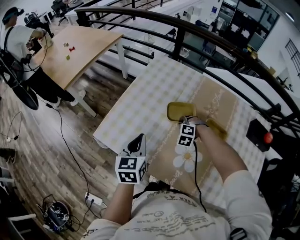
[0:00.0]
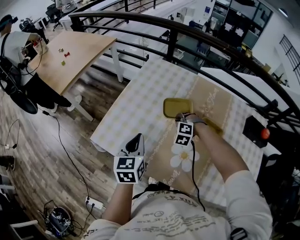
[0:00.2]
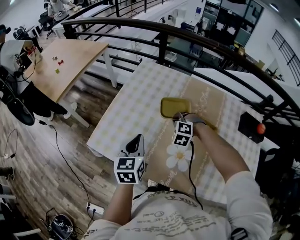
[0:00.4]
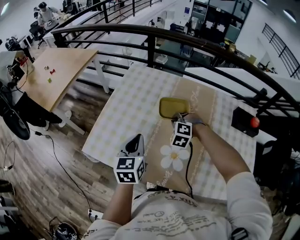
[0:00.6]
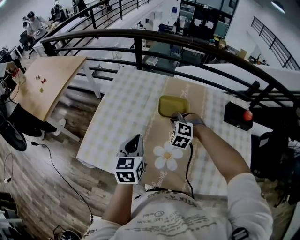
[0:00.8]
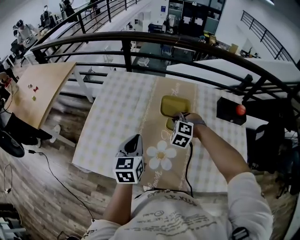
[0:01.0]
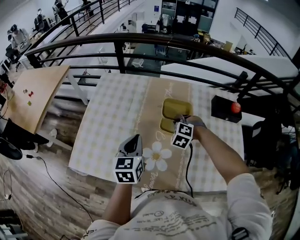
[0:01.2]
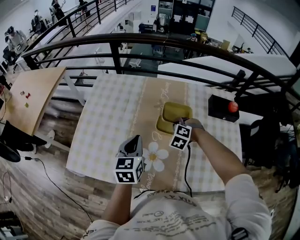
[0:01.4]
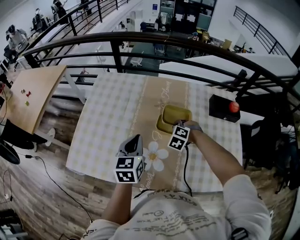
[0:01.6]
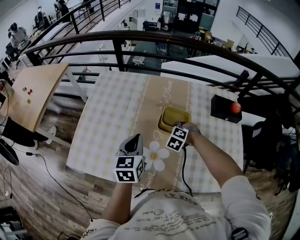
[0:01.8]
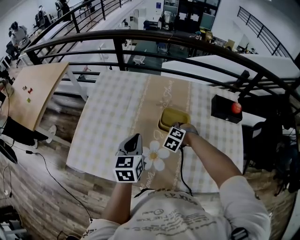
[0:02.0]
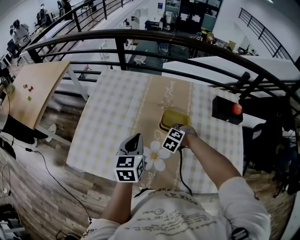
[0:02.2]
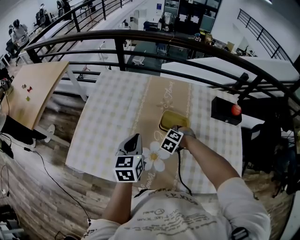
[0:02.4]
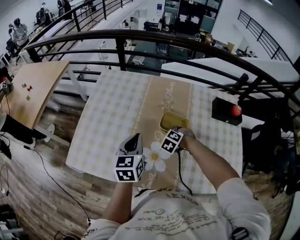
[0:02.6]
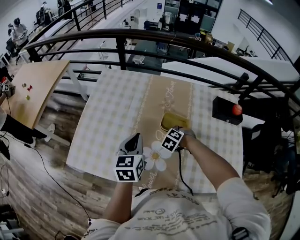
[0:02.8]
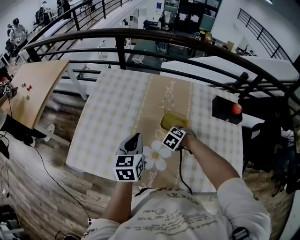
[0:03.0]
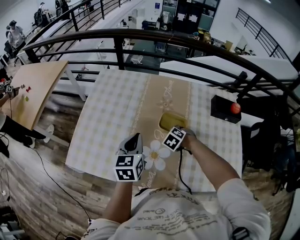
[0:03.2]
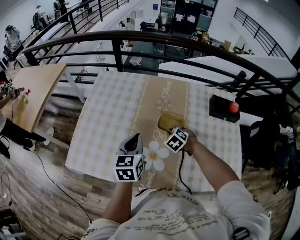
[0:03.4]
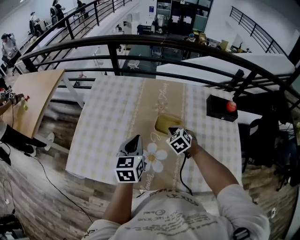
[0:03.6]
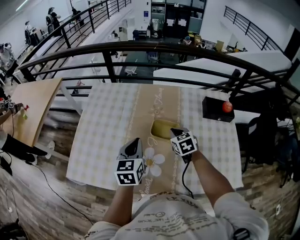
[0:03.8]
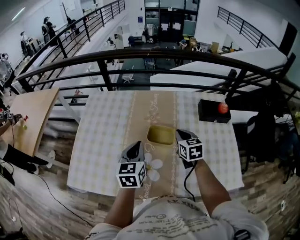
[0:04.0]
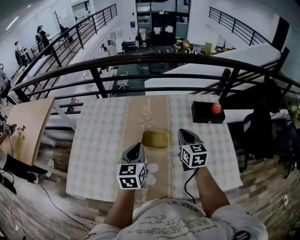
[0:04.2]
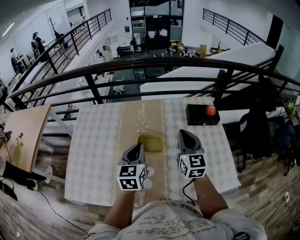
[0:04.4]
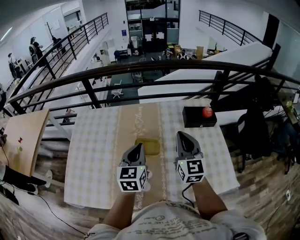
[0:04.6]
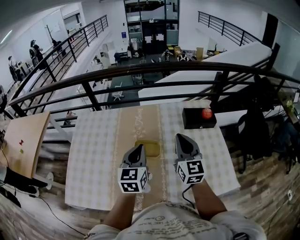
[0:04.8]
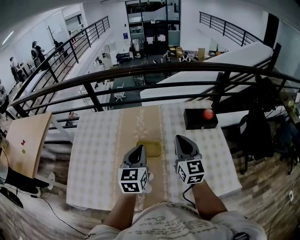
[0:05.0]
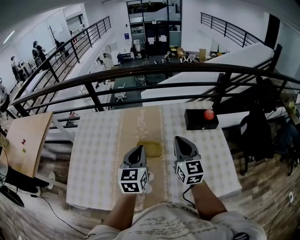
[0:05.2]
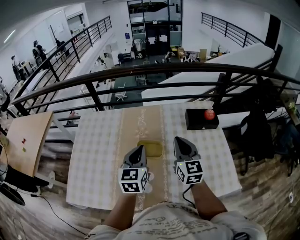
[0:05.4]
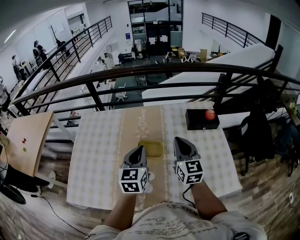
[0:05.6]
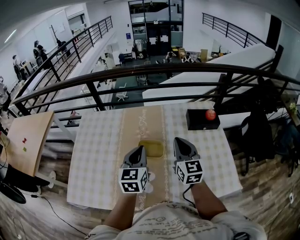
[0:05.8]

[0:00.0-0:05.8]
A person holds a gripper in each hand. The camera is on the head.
0:00.0 to 0:01.4: The right gripper is displaced to the right and upward by about 25 cm, and changes its angle by some 30 degrees, while the left gripper moves to the right, some 20 cm, and changes its angle by about 20 degrees.
0:01.4 to 0:02.8: The right gripper travels downward by approximately 10 cm.
0:02.8 to 0:04.4: The right gripper moves upward and to the right, approximately 35 cm, and points its fingers about 60 degrees further upward, while the left gripper heads to the right and upward, covering approximately 15 cm.
0:04.4 to 0:05.8: The grippers make only small movements.

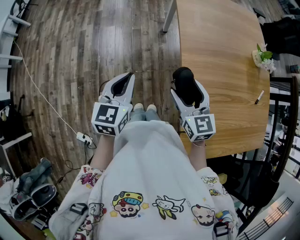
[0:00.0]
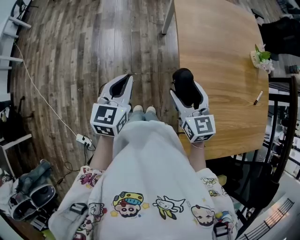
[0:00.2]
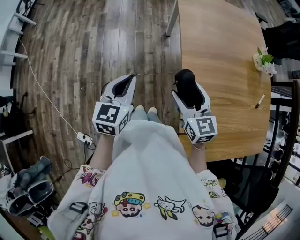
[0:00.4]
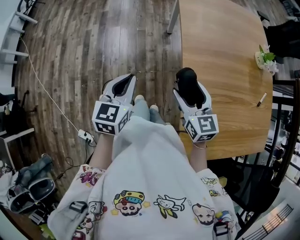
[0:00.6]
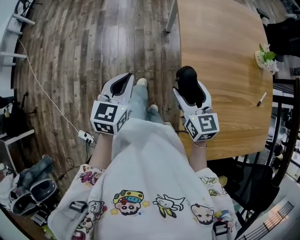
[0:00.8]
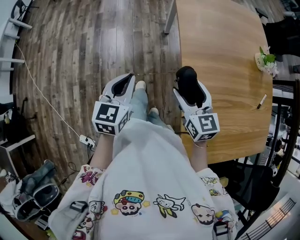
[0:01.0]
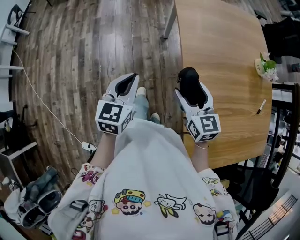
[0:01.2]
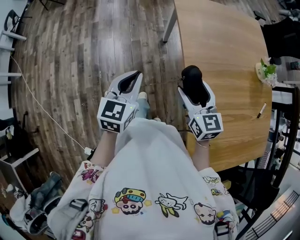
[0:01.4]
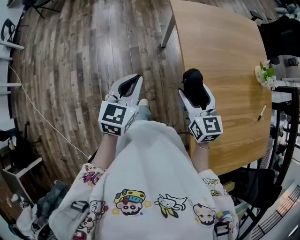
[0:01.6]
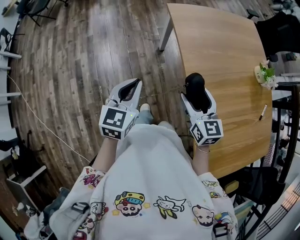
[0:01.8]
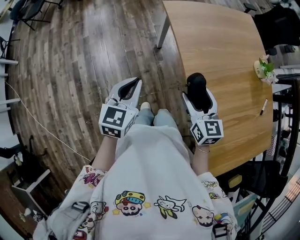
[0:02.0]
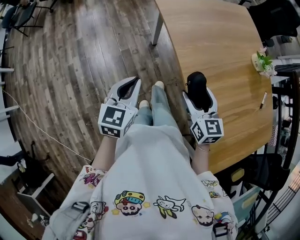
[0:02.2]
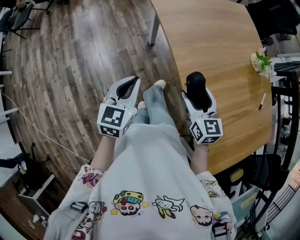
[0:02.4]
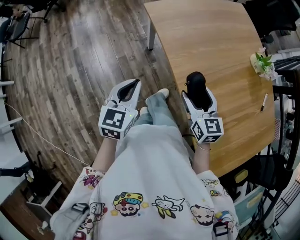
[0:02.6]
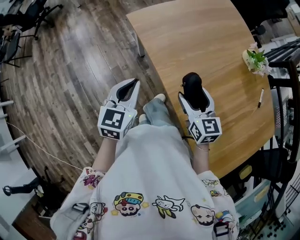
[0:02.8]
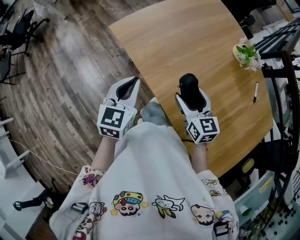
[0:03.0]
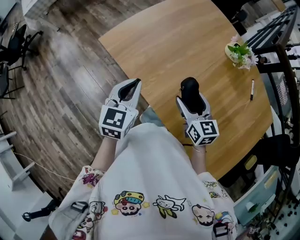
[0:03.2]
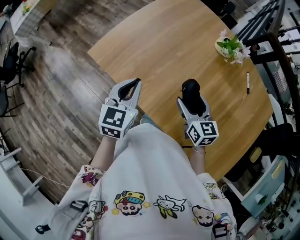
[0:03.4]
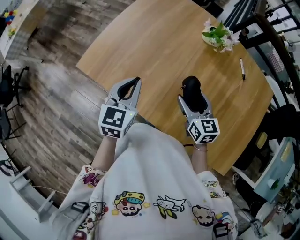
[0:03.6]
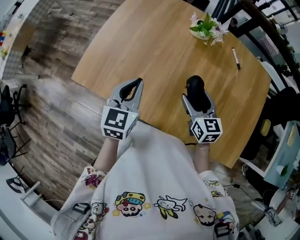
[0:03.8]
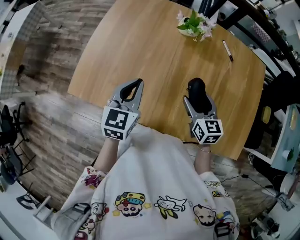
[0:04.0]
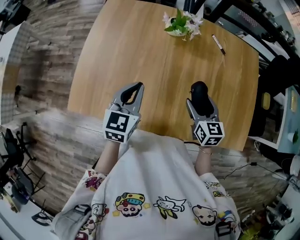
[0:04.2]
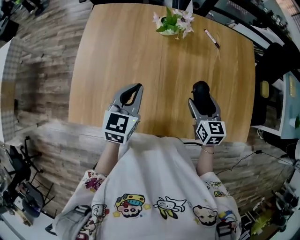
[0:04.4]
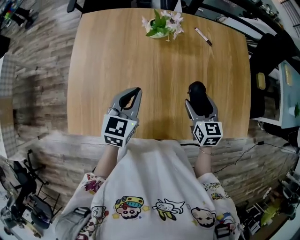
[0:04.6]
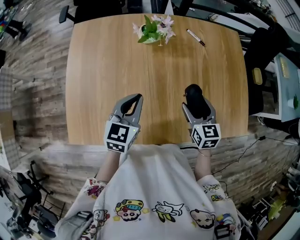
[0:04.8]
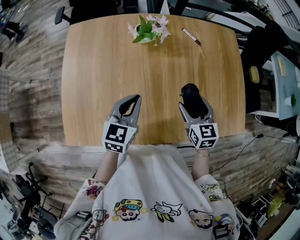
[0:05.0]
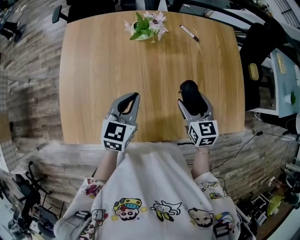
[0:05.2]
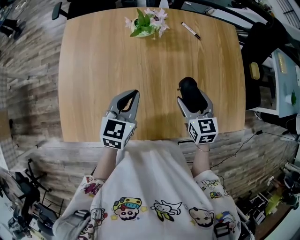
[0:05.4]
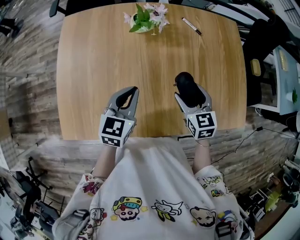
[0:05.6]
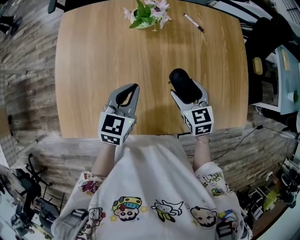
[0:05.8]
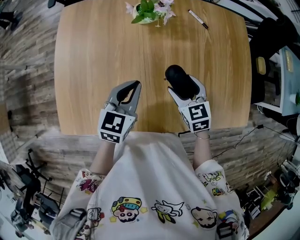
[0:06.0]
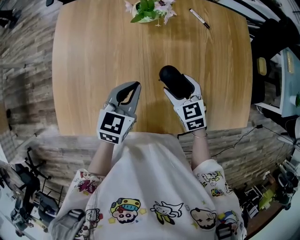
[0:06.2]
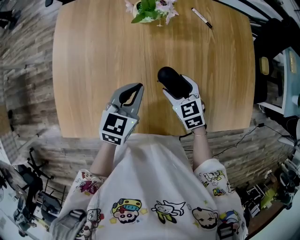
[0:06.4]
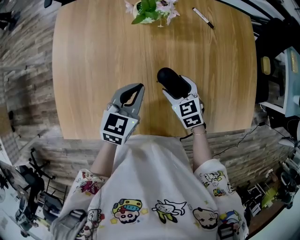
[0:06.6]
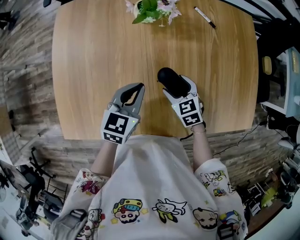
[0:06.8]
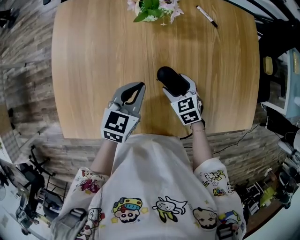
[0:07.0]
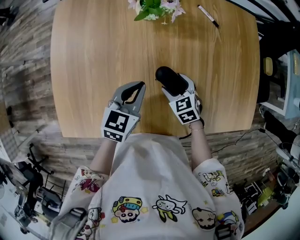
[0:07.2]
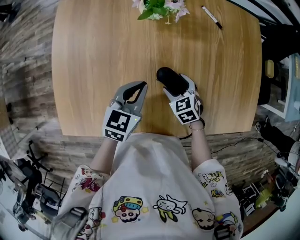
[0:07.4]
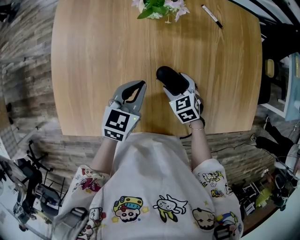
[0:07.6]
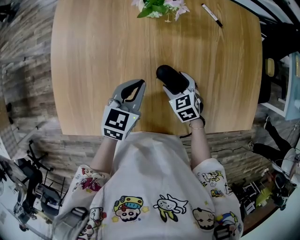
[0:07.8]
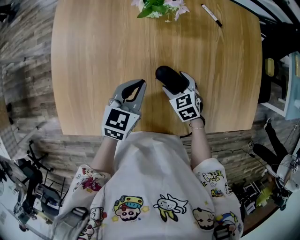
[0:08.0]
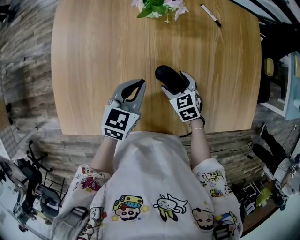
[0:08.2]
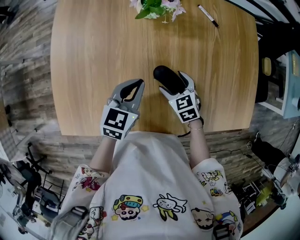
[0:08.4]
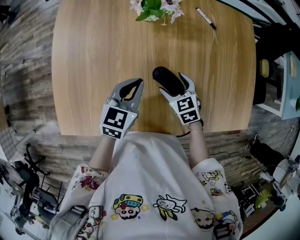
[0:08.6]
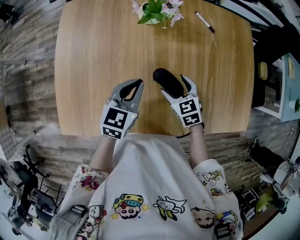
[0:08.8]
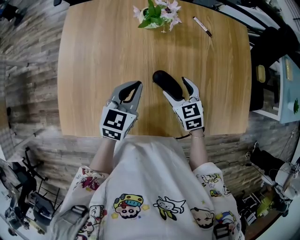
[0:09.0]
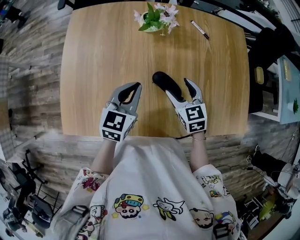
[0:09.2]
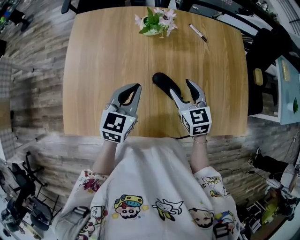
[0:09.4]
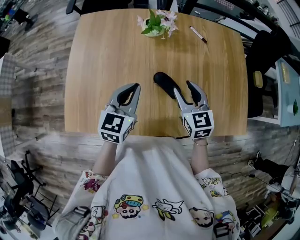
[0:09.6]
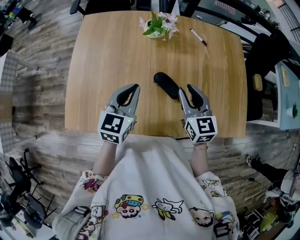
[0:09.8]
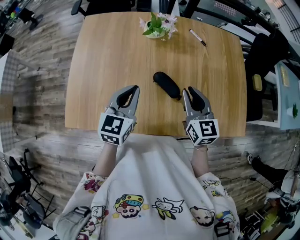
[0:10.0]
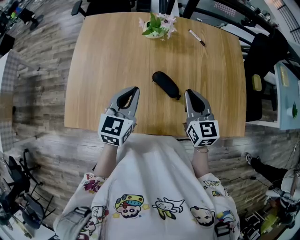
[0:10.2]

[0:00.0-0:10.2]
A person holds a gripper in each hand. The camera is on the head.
0:00.0 to 0:01.4: Both grippers travel together forward, about 15 cm.
0:01.4 to 0:03.0: The right gripper ends up roughly 20 cm from where it was, and rotates about 30 degrees, while the left gripper ends up some 30 cm from where it was, and rotates about 30 degrees.
0:03.0 to 0:04.4: The left gripper changes place by roughly 25 cm, and swivels some 50 degrees, while the right gripper changes place by some 20 cm, and rotates some 60 degrees.
0:04.4 to 0:05.8: The left gripper moves approximately 5 cm.
0:05.8 to 0:07.2: The left gripper moves downward, roughly 5 cm, while the right gripper goes about 15 cm downward and to the left, and turns by approximately 20 degrees.
0:07.2 to 0:08.8: There are only small adjustments of the grippers.
0:08.8 to 0:10.2: The left gripper goes some 10 cm backward and upward. Meanwhile the right gripper heads upward, covering roughly 15 cm, swivels approximately 30 degrees, and closes its fingers.

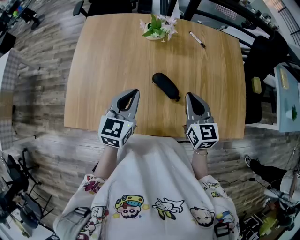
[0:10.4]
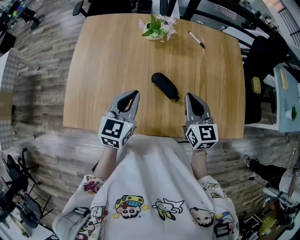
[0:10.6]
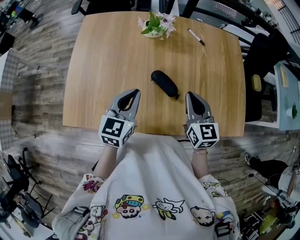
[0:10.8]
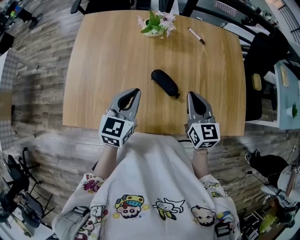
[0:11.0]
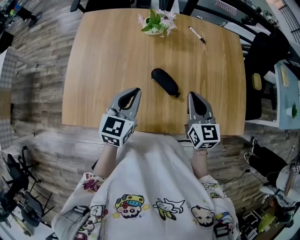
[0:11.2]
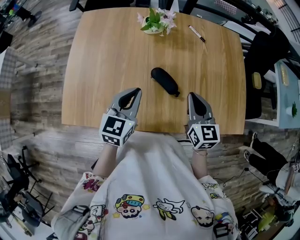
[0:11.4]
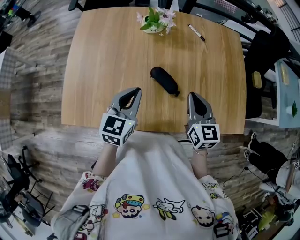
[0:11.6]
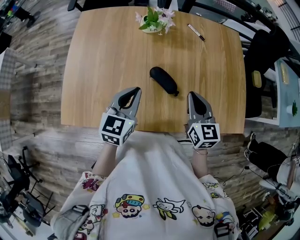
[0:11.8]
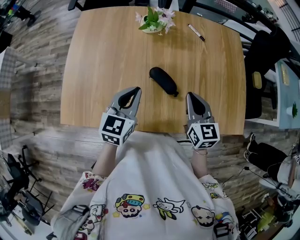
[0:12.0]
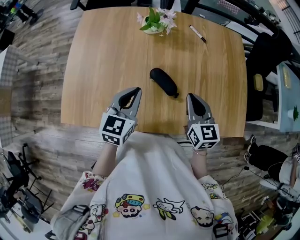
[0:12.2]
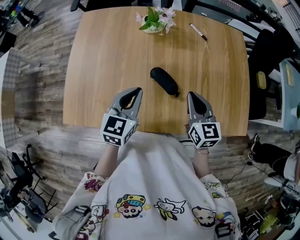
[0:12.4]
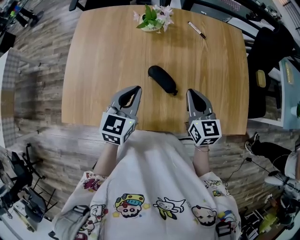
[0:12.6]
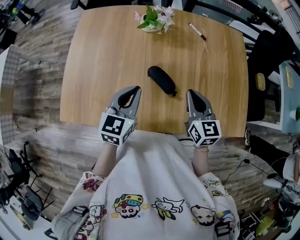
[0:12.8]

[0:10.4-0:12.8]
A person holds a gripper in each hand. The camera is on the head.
0:10.4 to 0:12.8: There are only small adjustments of the grippers.

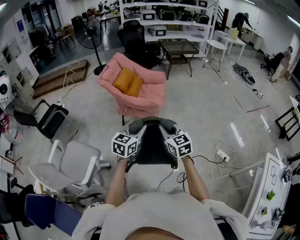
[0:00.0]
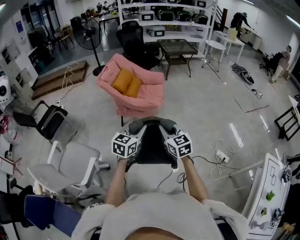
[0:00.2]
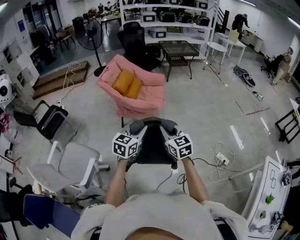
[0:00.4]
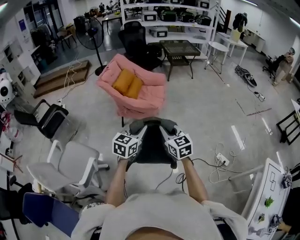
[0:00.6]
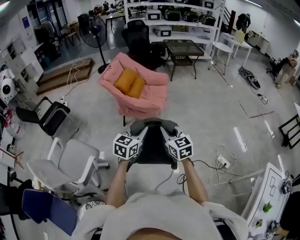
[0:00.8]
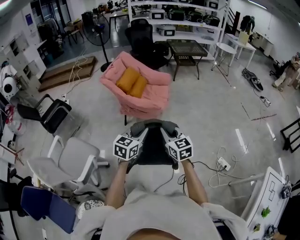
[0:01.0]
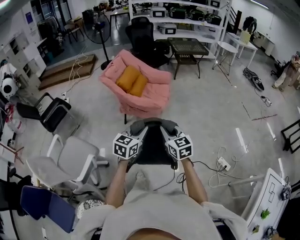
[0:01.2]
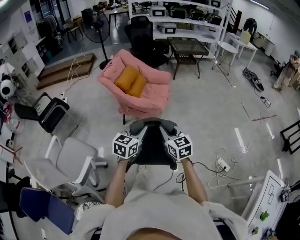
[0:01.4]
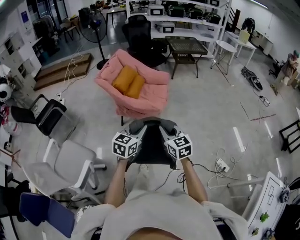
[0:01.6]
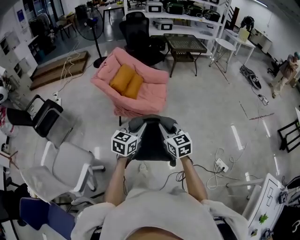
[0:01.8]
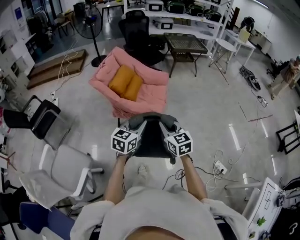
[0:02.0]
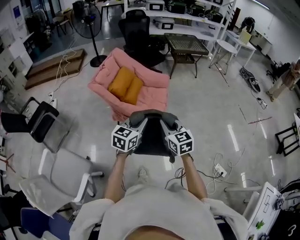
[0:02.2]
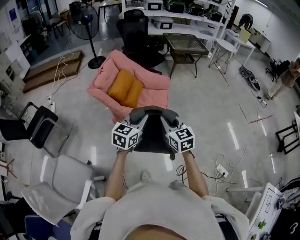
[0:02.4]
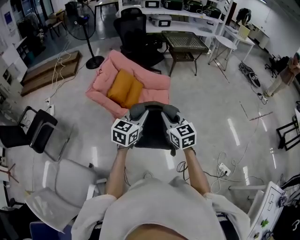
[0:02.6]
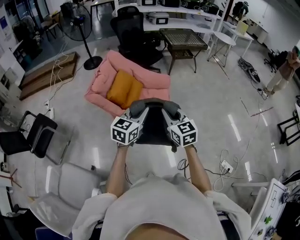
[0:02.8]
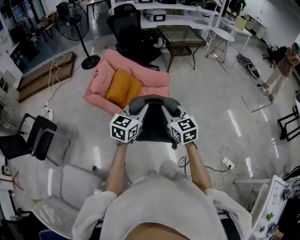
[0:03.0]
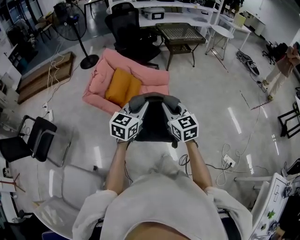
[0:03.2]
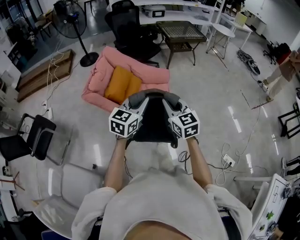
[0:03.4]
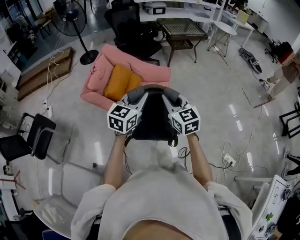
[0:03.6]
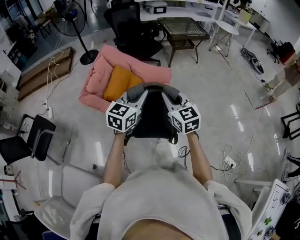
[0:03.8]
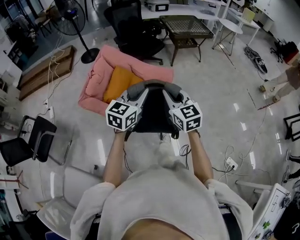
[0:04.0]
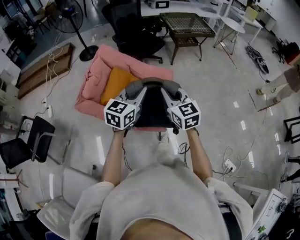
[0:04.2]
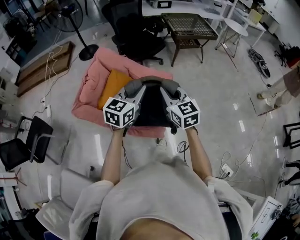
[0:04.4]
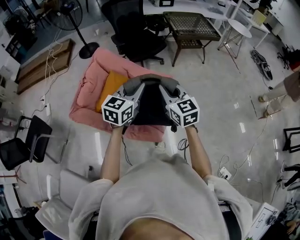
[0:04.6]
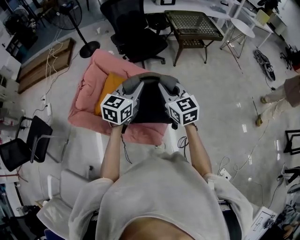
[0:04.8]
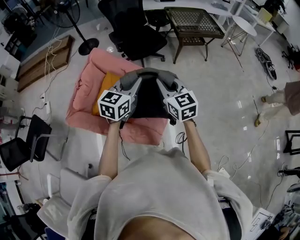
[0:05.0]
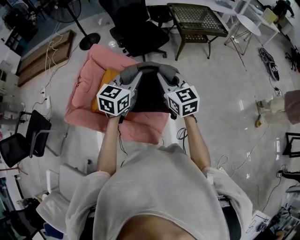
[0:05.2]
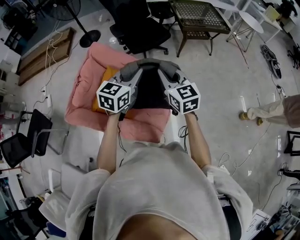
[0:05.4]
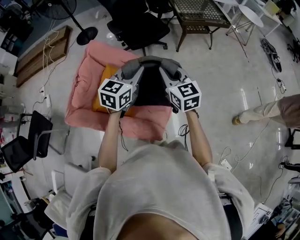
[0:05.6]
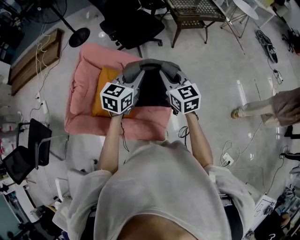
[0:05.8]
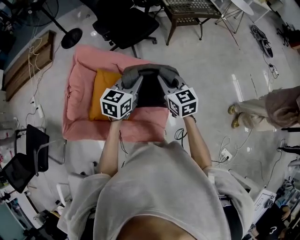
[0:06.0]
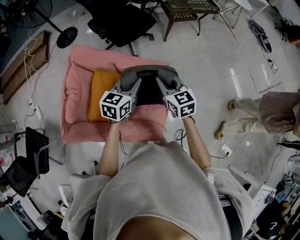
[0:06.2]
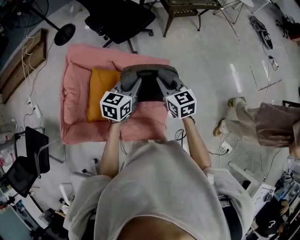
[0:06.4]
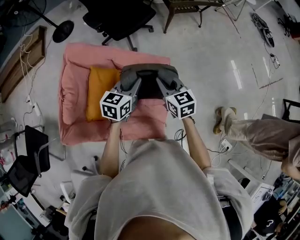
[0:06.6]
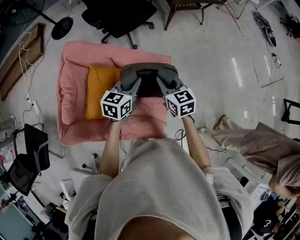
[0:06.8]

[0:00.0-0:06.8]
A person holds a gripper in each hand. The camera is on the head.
0:00.0 to 0:01.4: The grippers both shift forward by some 10 cm.
0:01.4 to 0:02.8: Both grippers travel together forward, approximately 35 cm.
0:02.8 to 0:04.0: Both grippers move forward, about 15 cm.
0:04.0 to 0:05.4: Both grippers move forward, about 30 cm.
0:05.4 to 0:06.8: The grippers both shift downward and forward by about 20 cm. The right gripper changes its angle by roughly 20 degrees, while the left gripper rotates roughly 20 degrees.
